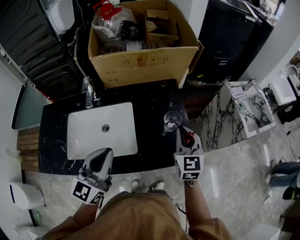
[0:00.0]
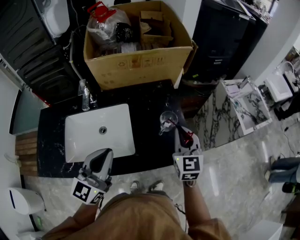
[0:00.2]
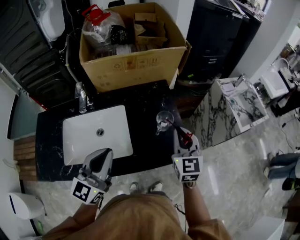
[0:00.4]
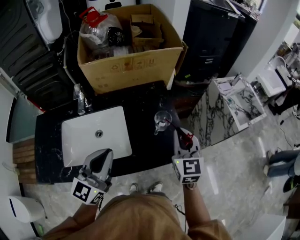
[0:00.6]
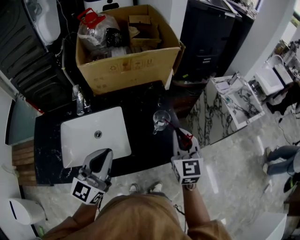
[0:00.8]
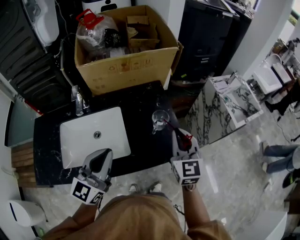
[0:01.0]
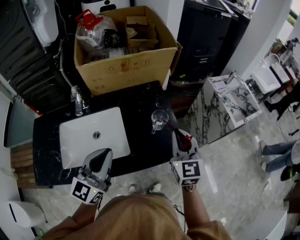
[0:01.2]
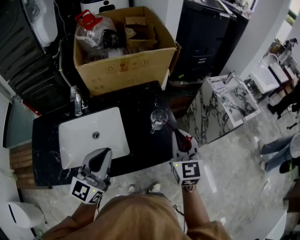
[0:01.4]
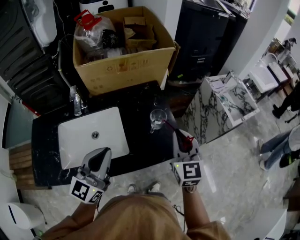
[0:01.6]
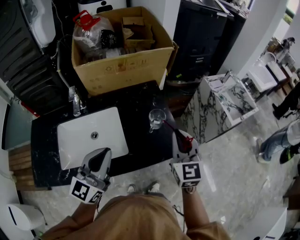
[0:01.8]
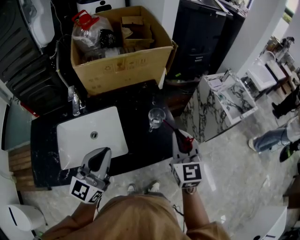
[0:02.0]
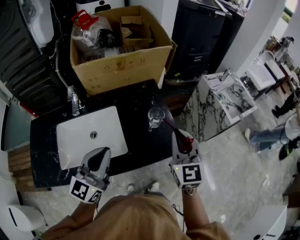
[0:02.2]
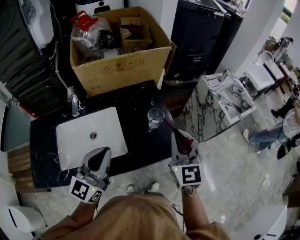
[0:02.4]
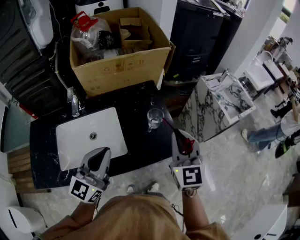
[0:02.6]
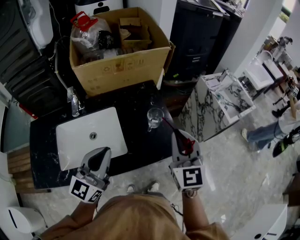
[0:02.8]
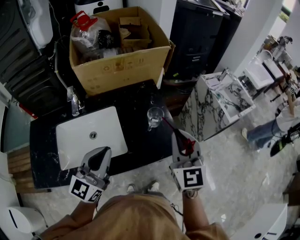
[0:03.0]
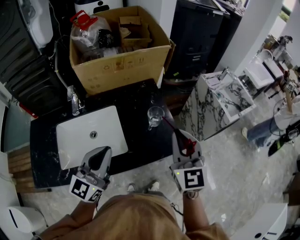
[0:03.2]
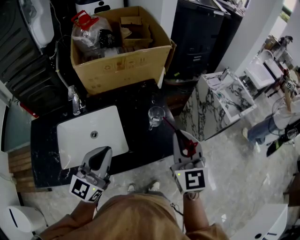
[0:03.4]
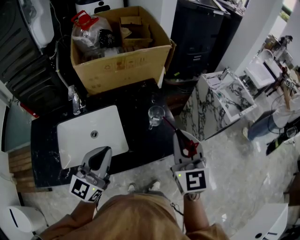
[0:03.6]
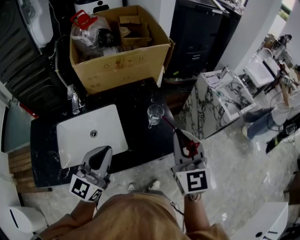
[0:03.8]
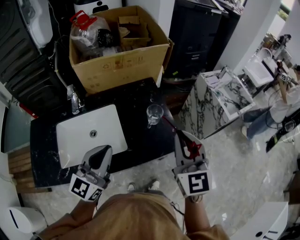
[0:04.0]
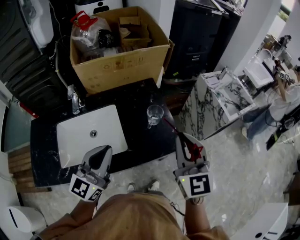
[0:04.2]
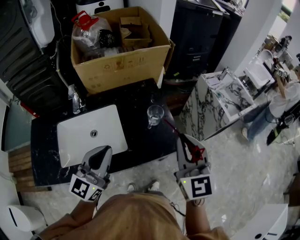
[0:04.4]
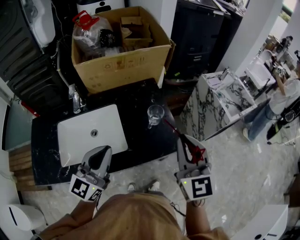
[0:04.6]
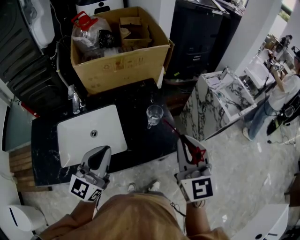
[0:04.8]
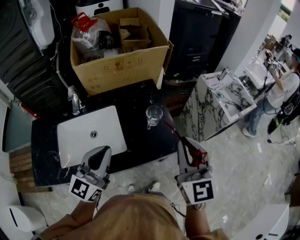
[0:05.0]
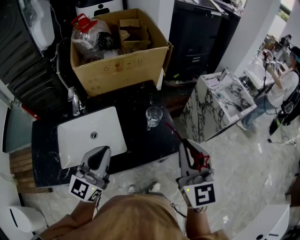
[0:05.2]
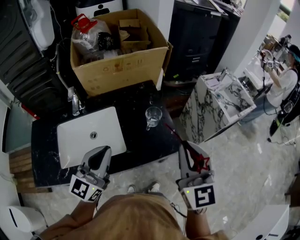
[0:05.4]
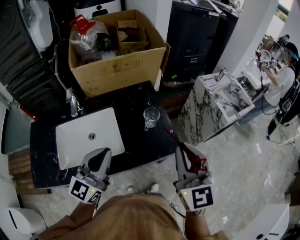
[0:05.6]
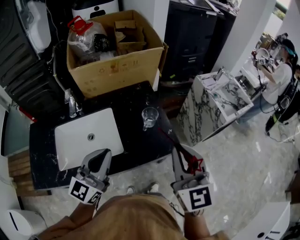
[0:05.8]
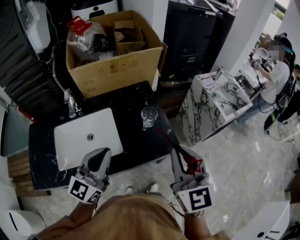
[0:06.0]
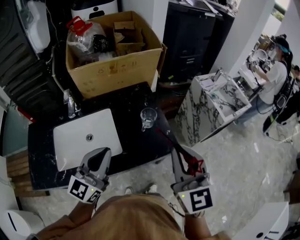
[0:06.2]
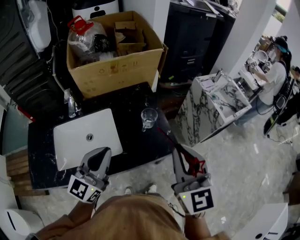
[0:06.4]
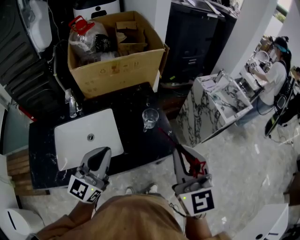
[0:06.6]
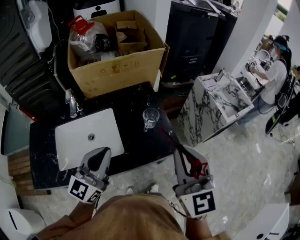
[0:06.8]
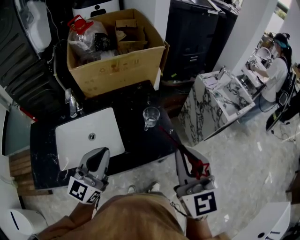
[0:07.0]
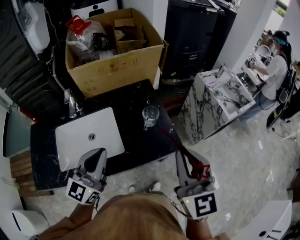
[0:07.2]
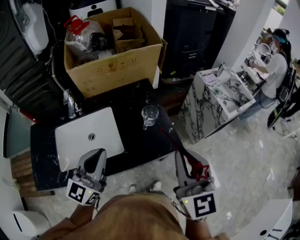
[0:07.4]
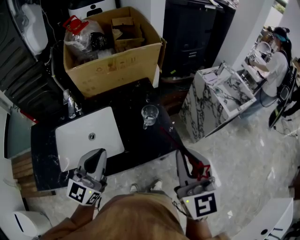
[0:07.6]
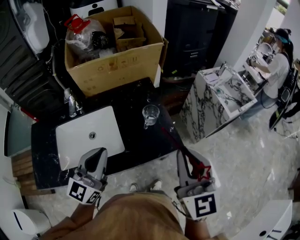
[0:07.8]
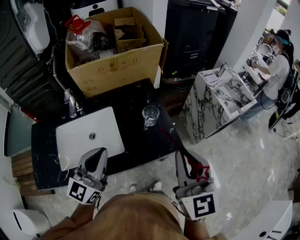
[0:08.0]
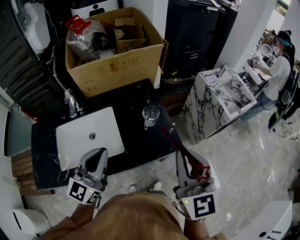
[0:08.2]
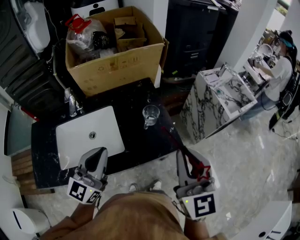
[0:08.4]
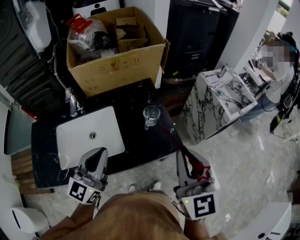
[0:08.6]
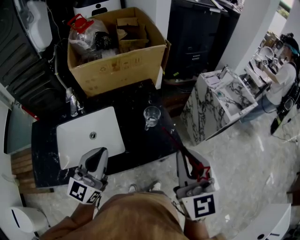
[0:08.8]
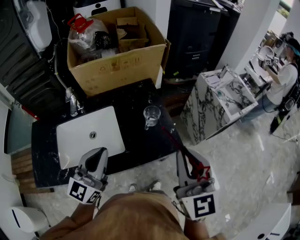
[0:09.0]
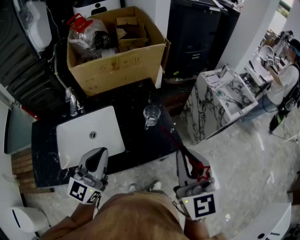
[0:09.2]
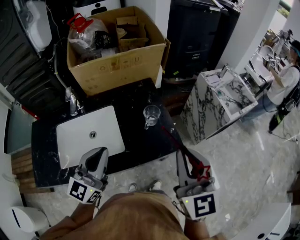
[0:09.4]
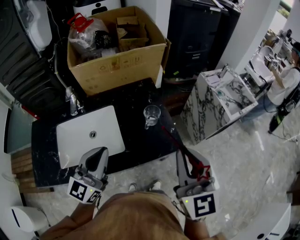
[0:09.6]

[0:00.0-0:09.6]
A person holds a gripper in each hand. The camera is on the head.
0:00.0 to 0:01.6: The right gripper travels backward and upward by roughly 10 cm.
0:01.6 to 0:03.2: The right gripper travels upward by approximately 5 cm.
0:03.2 to 0:04.8: The right gripper shifts by roughly 5 cm.
0:04.8 to 0:08.0: The grippers make only small movements.
0:08.0 to 0:09.6: Both grippers stay about where they are.

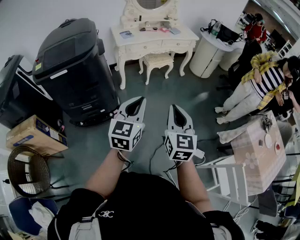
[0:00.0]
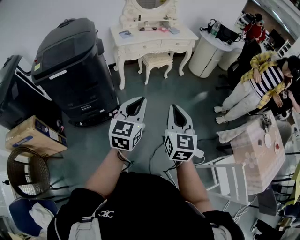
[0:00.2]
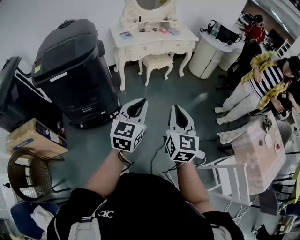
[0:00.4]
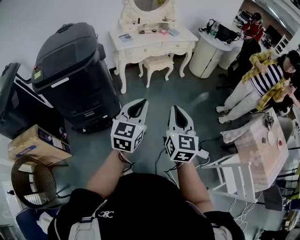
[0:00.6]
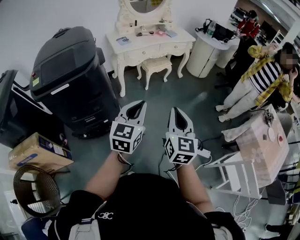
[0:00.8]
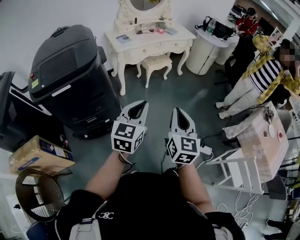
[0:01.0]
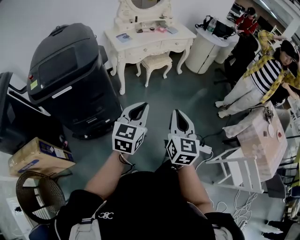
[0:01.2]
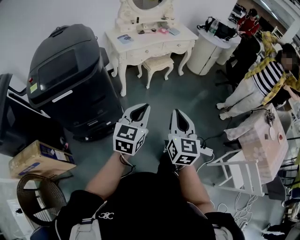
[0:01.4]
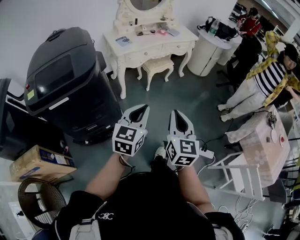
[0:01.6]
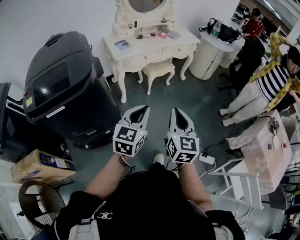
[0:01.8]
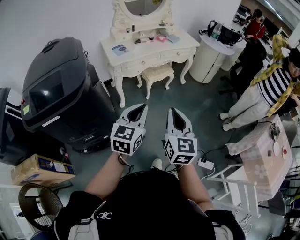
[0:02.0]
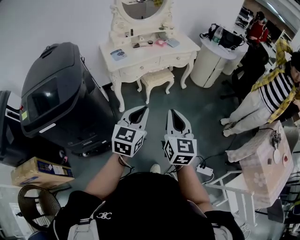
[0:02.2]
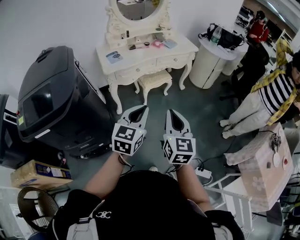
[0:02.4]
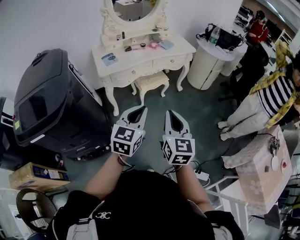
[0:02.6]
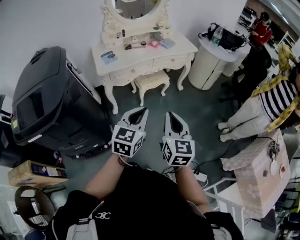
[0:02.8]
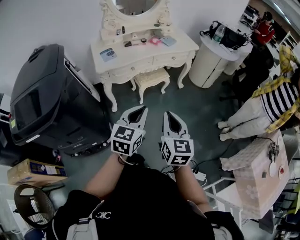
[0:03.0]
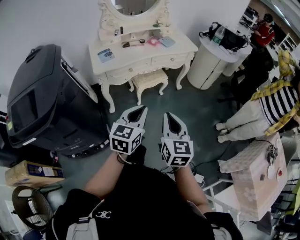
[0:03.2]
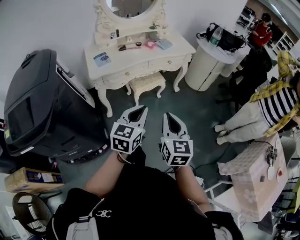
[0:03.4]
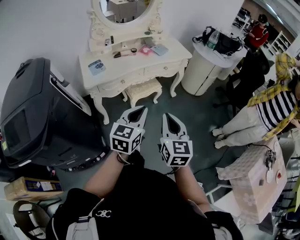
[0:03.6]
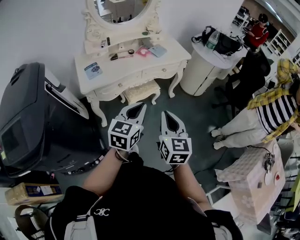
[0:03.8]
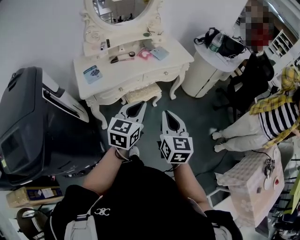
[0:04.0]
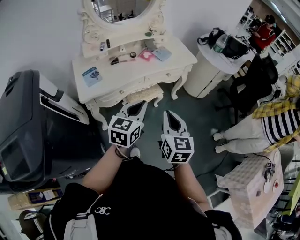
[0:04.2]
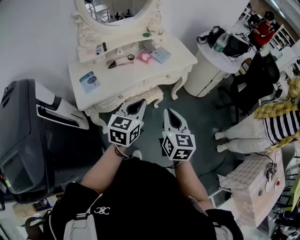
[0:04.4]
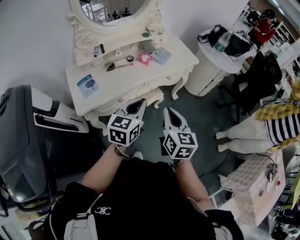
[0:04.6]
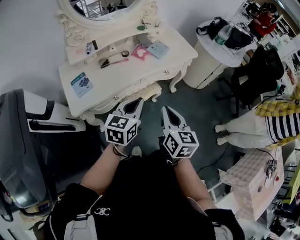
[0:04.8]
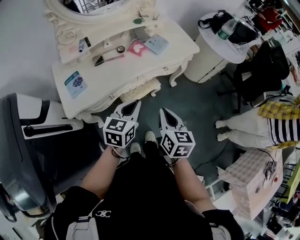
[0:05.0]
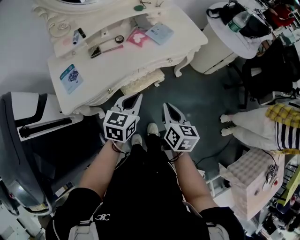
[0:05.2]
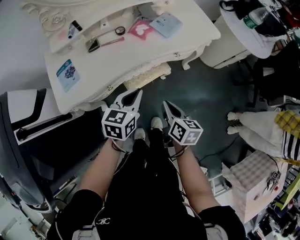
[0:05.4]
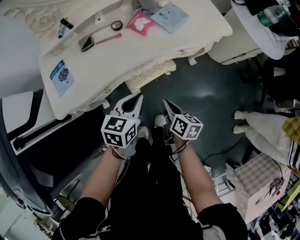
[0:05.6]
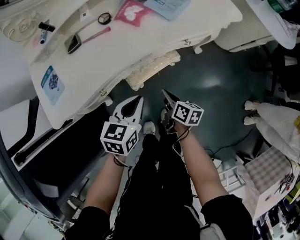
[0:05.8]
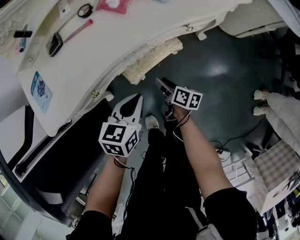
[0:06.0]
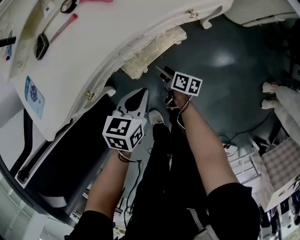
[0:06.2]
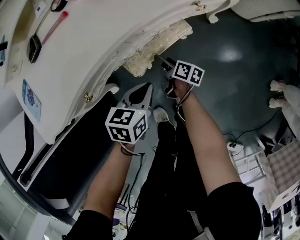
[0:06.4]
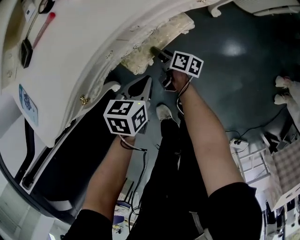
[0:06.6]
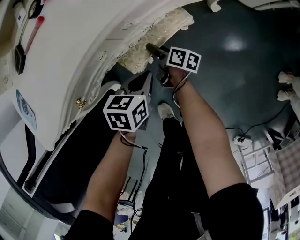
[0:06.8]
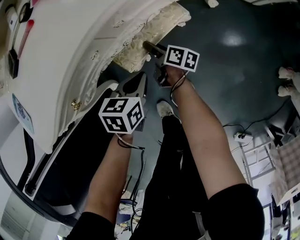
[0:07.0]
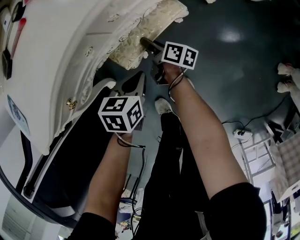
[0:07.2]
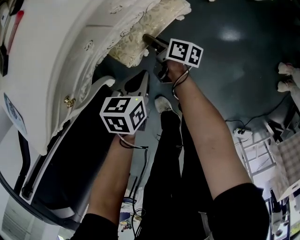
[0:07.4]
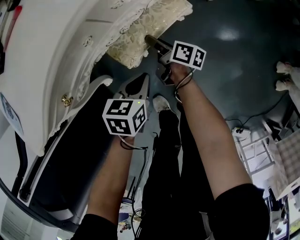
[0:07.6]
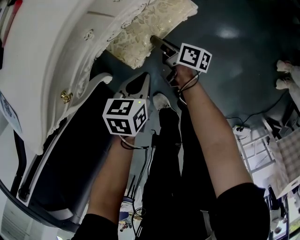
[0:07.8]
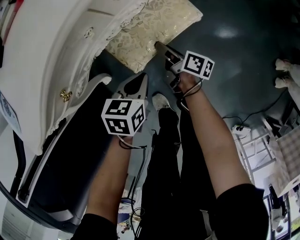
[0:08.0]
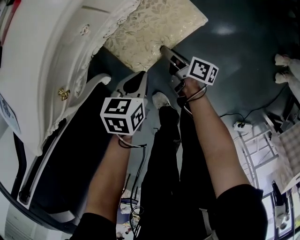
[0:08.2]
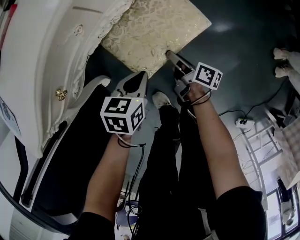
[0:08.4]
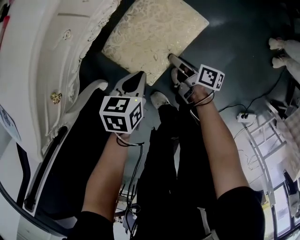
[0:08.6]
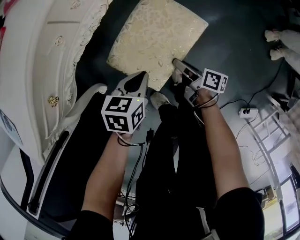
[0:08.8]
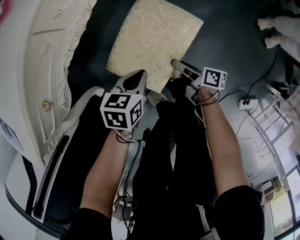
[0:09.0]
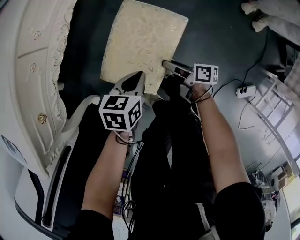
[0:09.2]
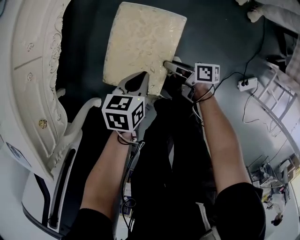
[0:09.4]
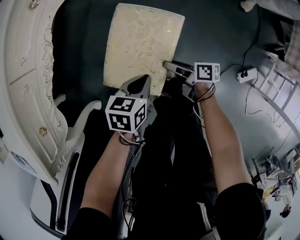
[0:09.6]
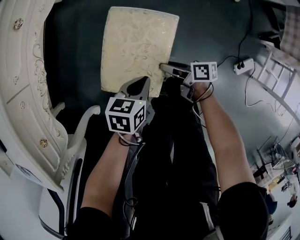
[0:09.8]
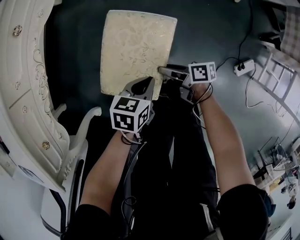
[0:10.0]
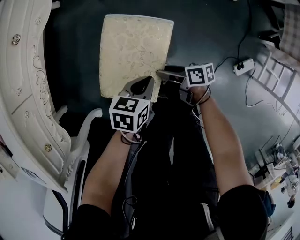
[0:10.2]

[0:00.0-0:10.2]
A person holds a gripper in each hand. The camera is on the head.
0:00.0 to 0:01.4: The left gripper heads to the left and forward, covering roughly 15 cm. Meanwhile the right gripper heads to the left, covering about 15 cm.
0:01.4 to 0:03.0: The left gripper shifts some 30 cm forward and to the right, while the right gripper is displaced forward by about 30 cm.
0:03.0 to 0:04.4: The two grippers go approximately 30 cm forward.
0:04.4 to 0:05.8: The grippers both shift downward and forward by roughly 40 cm. The left gripper changes its angle by some 20 degrees. The right gripper rotates around the line of its fingers by about 40 degrees, clockwise from behind.
0:05.8 to 0:07.2: The left gripper is displaced downward by about 25 cm, and swivels about 20 degrees, while the right gripper shifts some 25 cm downward and forward, turns by approximately 20 degrees, and opens.
0:07.2 to 0:08.8: The left gripper heads backward and to the right, covering approximately 10 cm; the right gripper shifts some 25 cm backward and to the right.
0:08.8 to 0:10.2: The left gripper changes place by about 20 cm, and swivels approximately 30 degrees. The right gripper ends up roughly 15 cm from where it was.

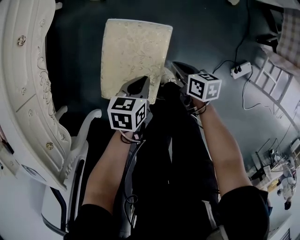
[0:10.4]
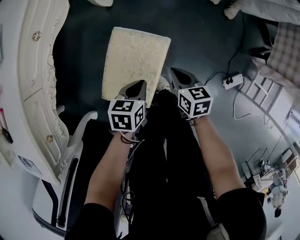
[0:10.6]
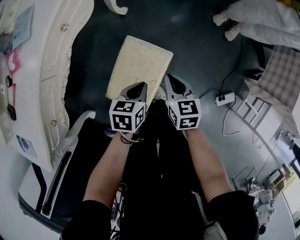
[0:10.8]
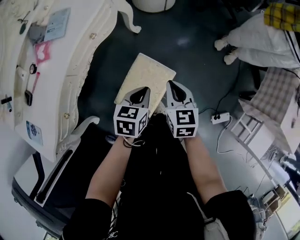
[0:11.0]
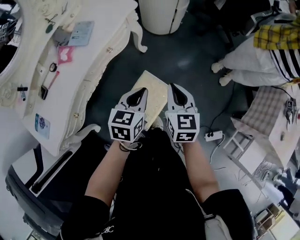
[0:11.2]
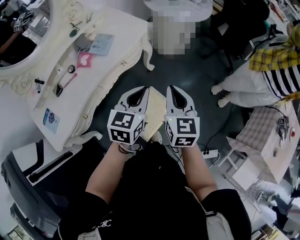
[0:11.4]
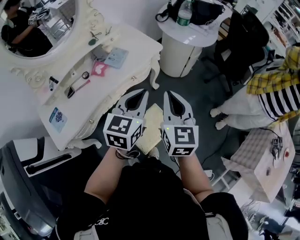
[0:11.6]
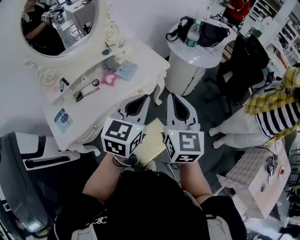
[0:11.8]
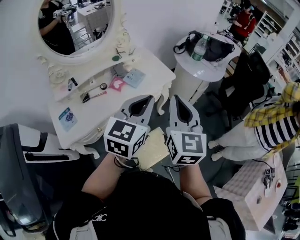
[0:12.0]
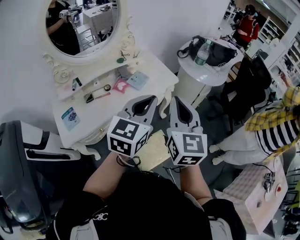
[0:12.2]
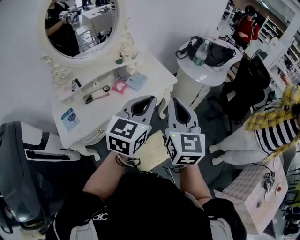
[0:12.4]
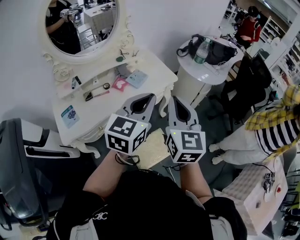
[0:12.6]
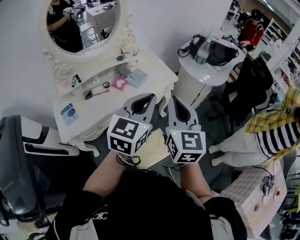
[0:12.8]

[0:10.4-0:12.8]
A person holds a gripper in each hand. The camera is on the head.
0:10.4 to 0:11.6: The grippers both shift upward by approximately 60 cm. The left gripper angles its fingers upward, by about 40 degrees, while the right gripper rolls counterclockwise, seen from behind, by approximately 50 degrees.
0:11.6 to 0:12.8: The two grippers go approximately 10 cm upward.

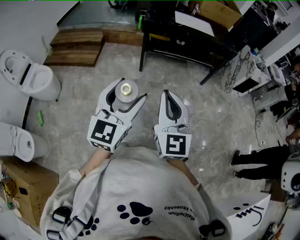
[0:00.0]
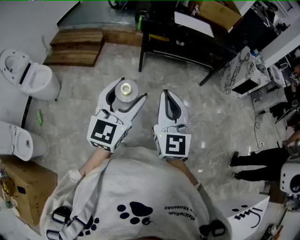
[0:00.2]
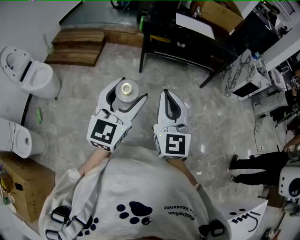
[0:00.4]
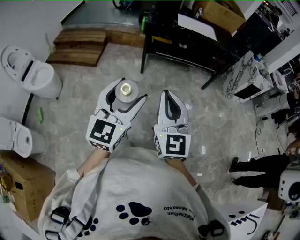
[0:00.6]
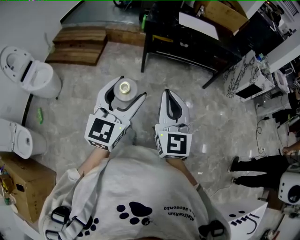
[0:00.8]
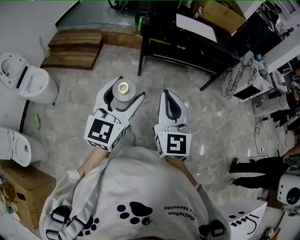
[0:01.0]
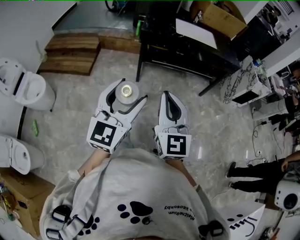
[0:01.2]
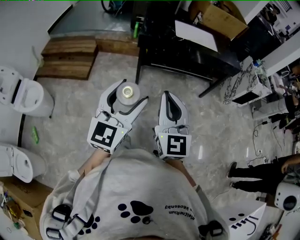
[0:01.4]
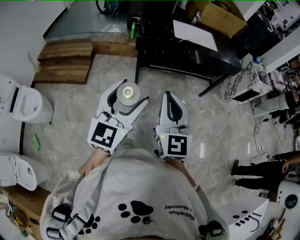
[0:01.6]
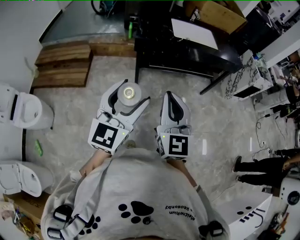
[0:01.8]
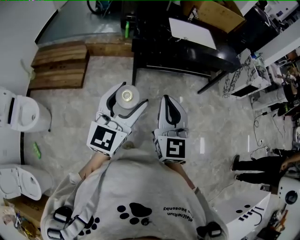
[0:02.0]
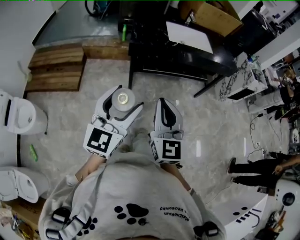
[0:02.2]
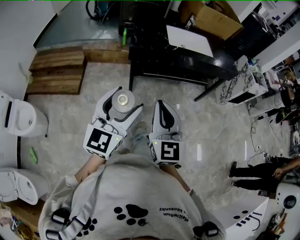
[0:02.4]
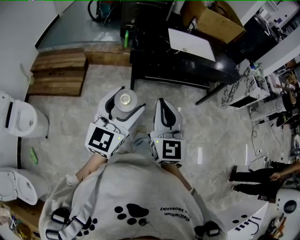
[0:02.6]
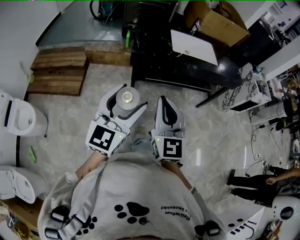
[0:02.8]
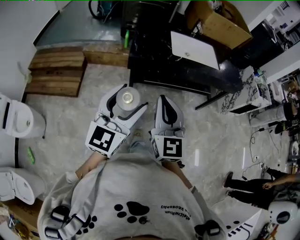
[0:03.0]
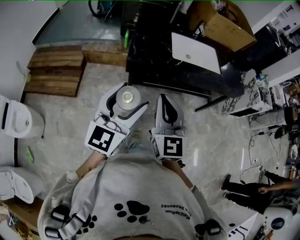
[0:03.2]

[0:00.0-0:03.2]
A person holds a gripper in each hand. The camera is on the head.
0:00.0 to 0:01.6: Both grippers travel together forward, roughly 25 cm.
0:01.6 to 0:03.2: Both grippers travel together forward, some 25 cm.
